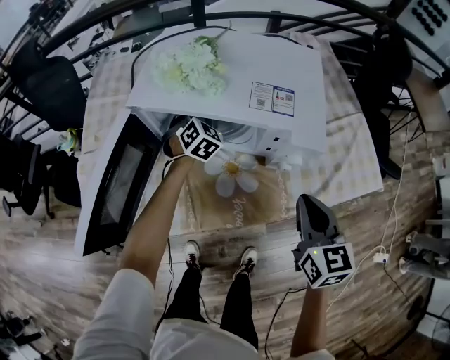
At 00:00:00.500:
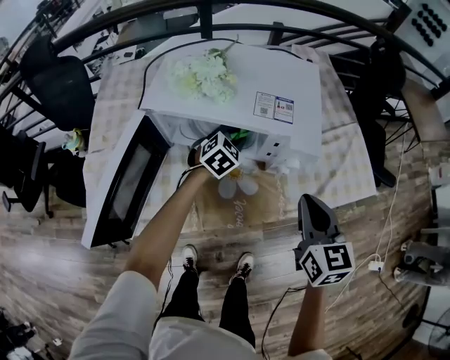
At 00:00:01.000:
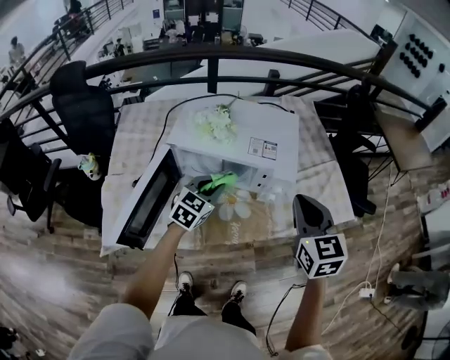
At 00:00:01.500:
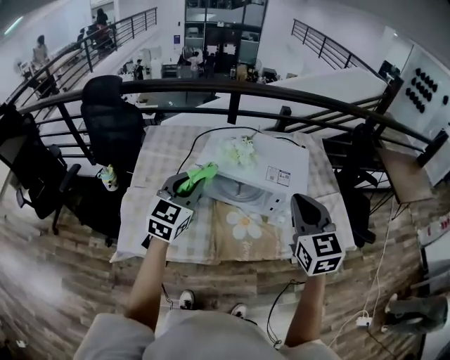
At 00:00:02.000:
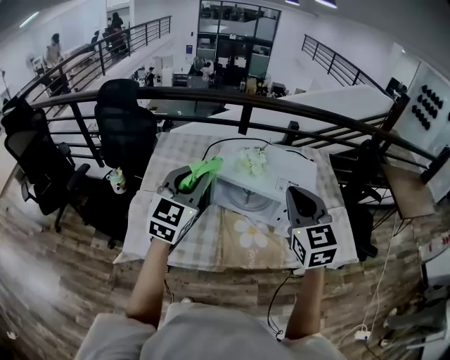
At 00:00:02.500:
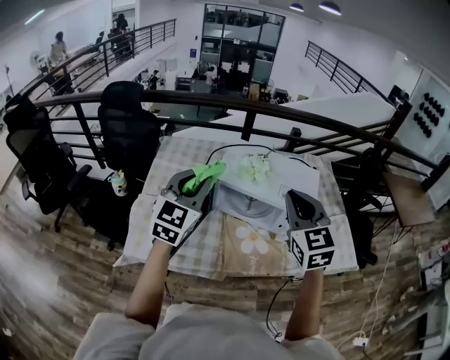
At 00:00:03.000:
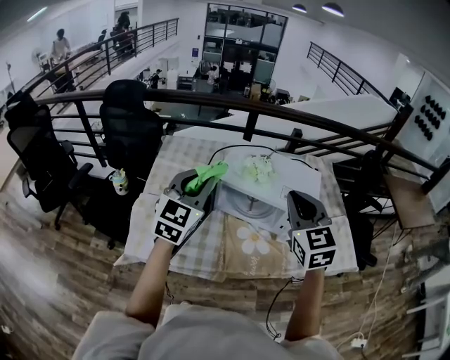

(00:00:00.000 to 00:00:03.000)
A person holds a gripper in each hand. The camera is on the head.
00:00:00.000 - 00:00:01.500: The right gripper goes roughly 25 cm upward, and swivels approximately 20 degrees, while the left gripper moves upward and backward, roughly 40 cm, and swivels some 40 degrees.
00:00:01.500 - 00:00:03.000: The left gripper is displaced upward by approximately 5 cm; the right gripper shifts approximately 10 cm to the left.

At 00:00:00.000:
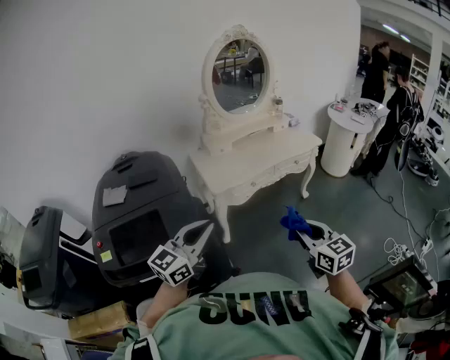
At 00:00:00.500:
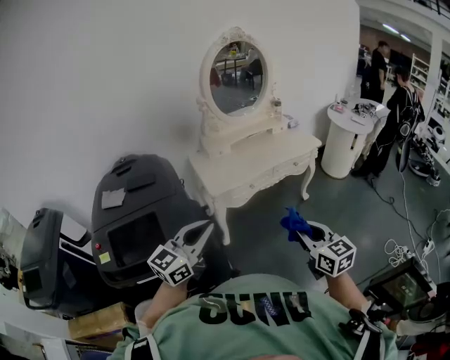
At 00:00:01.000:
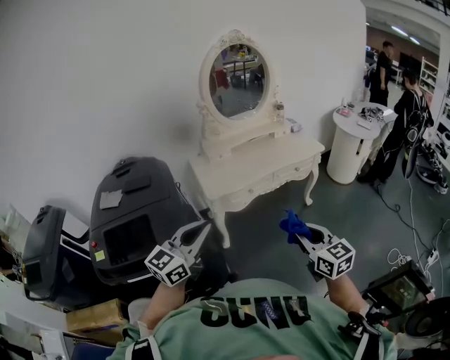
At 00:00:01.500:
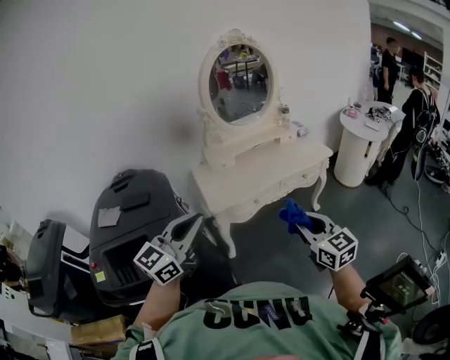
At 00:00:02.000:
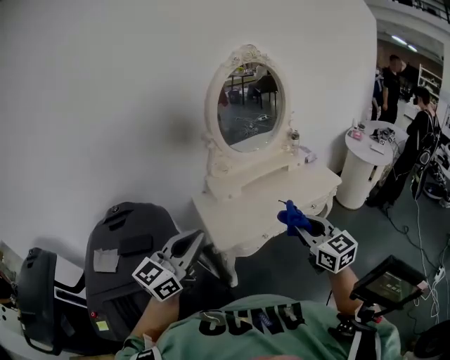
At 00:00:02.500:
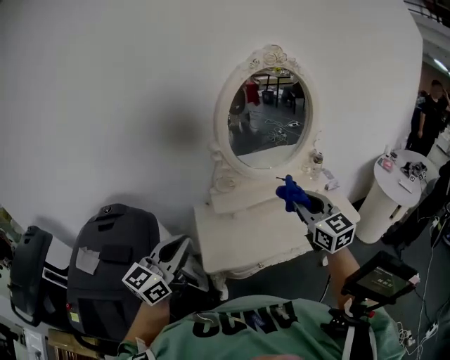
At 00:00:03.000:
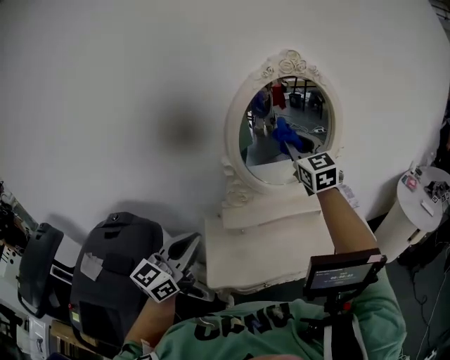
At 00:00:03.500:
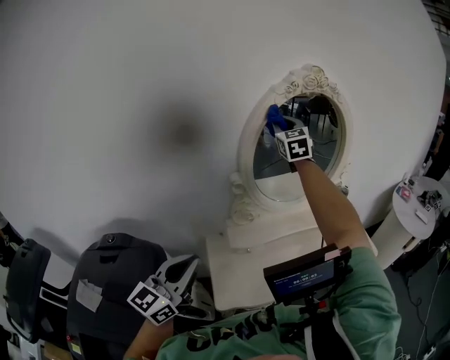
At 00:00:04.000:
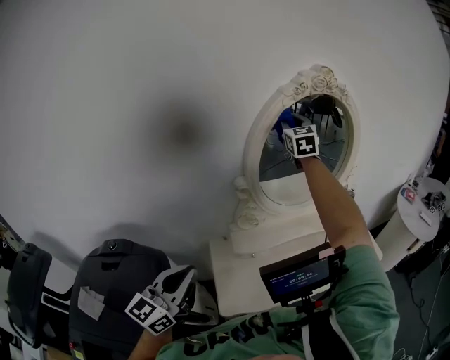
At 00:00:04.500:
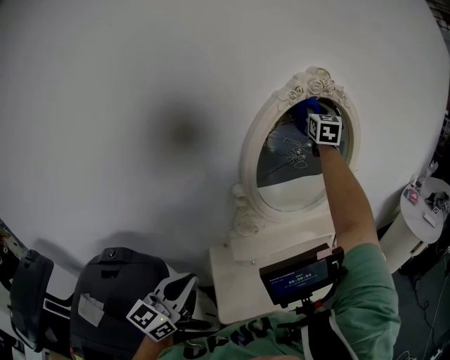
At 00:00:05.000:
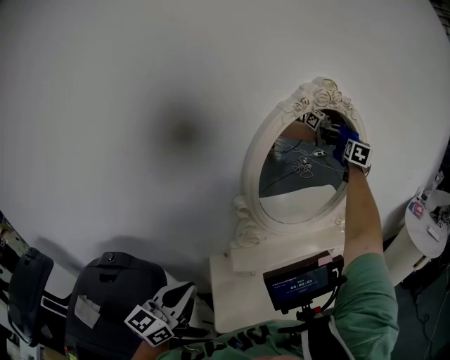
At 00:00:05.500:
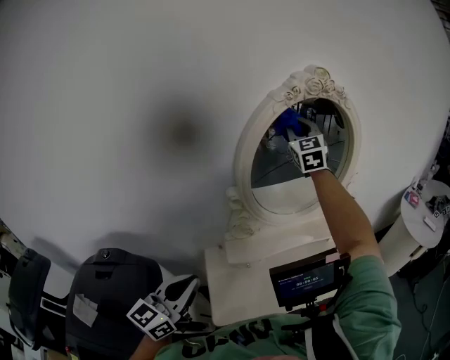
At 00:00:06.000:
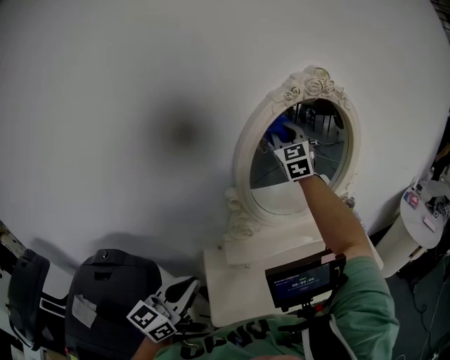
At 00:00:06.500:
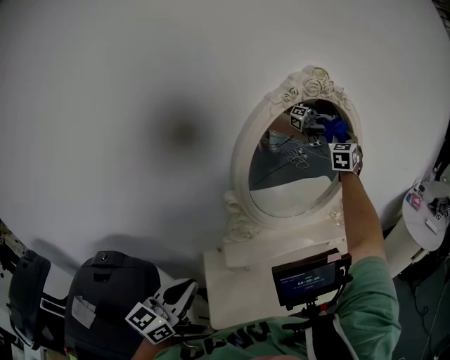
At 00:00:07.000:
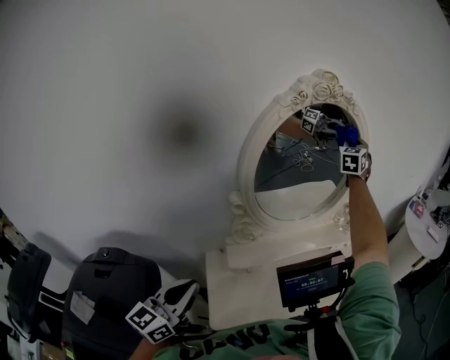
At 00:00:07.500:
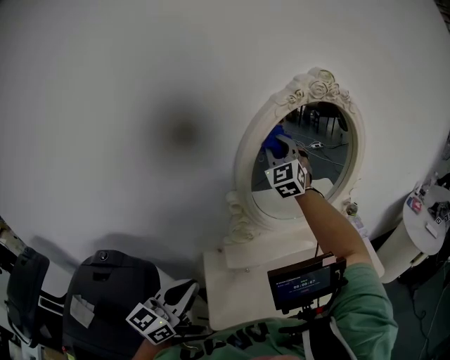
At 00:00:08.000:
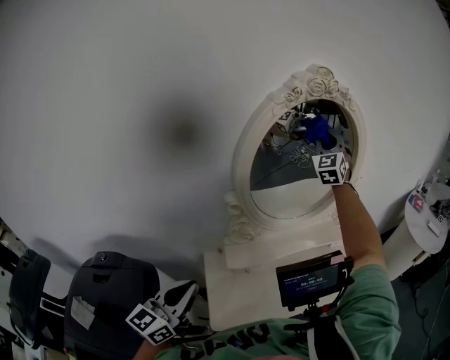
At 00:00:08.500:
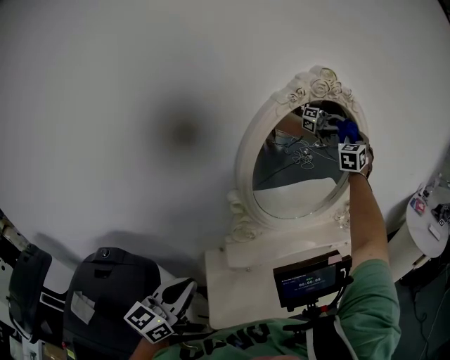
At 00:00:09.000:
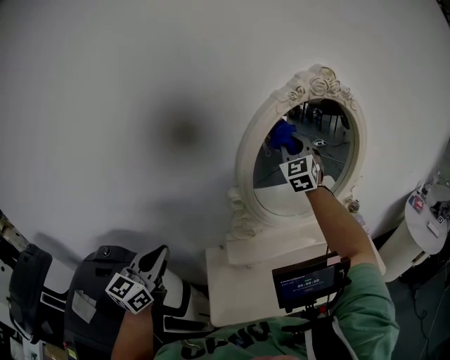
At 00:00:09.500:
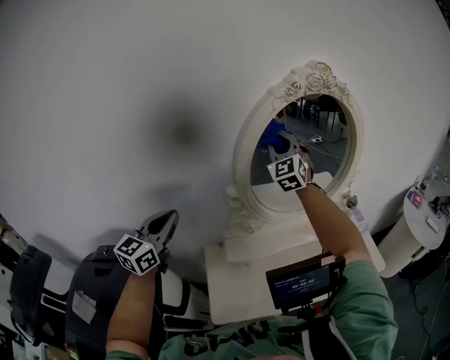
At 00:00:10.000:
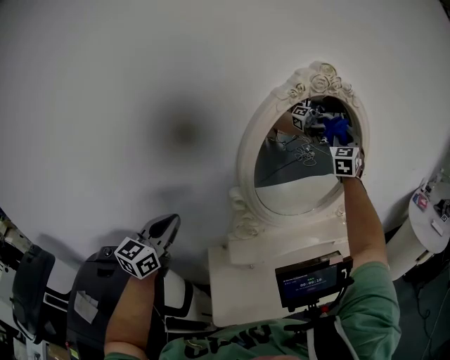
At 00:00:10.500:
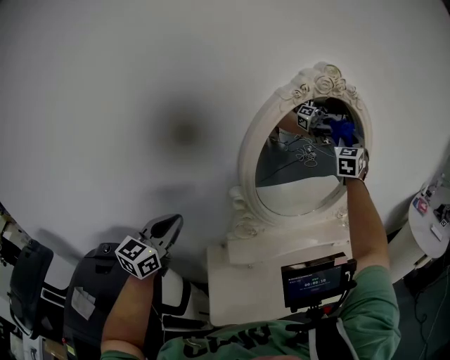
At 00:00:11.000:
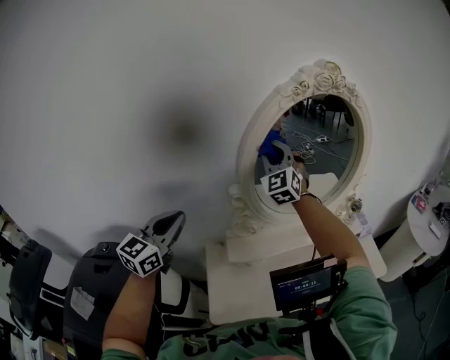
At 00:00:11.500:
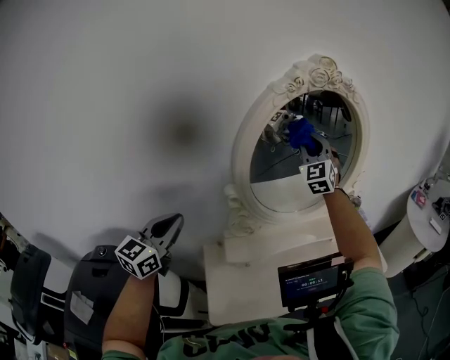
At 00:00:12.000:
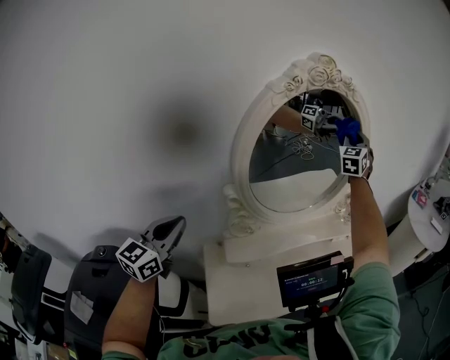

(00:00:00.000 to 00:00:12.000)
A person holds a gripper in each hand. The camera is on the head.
00:00:00.000 - 00:00:02.000: The two grippers go some 30 cm forward.
00:00:02.000 - 00:00:04.000: The right gripper goes roughly 70 cm forward, and turns by approximately 20 degrees. The left gripper travels forward by roughly 25 cm, and changes its angle by some 20 degrees.
00:00:04.000 - 00:00:06.000: The left gripper ends up about 5 cm from where it was; the right gripper travels to the right and back again, some 30 cm each way.
00:00:06.000 - 00:00:08.000: The right gripper swings left and right, some 30 cm each way, with 2 reversals, and turns by approximately 20 degrees.
00:00:08.000 - 00:00:10.000: The right gripper goes left and right, roughly 30 cm each way, reversing 2 times. Meanwhile the left gripper shifts about 15 cm forward, to the left and upward.
00:00:10.000 - 00:00:12.000: The right gripper moves roughly 25 cm to the left and comes back.

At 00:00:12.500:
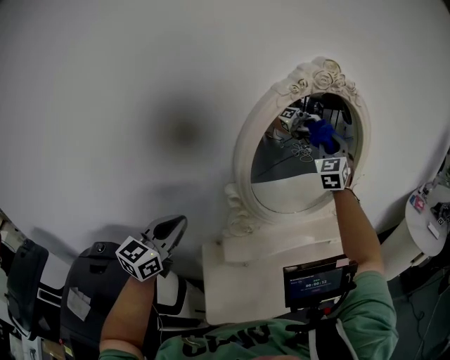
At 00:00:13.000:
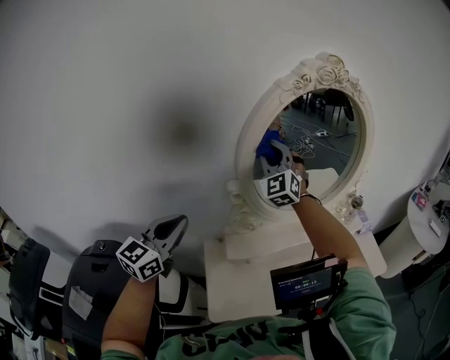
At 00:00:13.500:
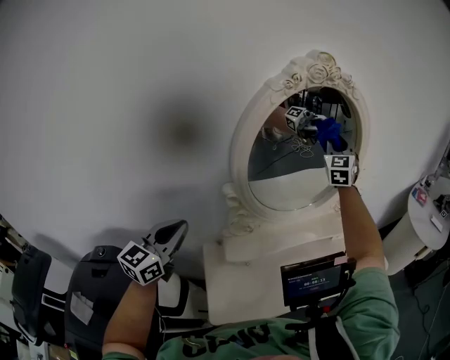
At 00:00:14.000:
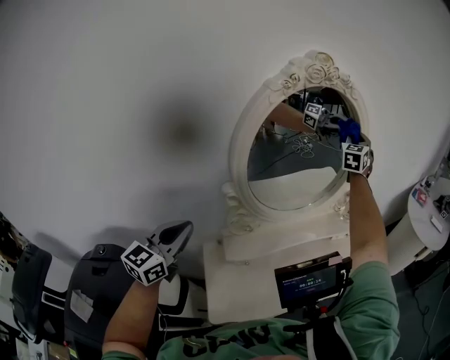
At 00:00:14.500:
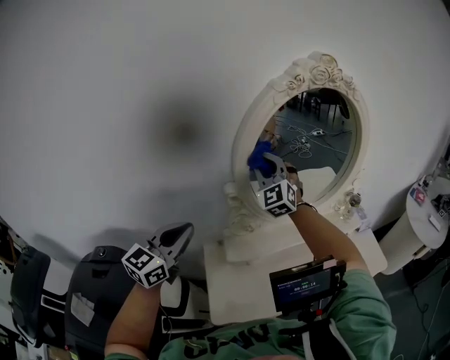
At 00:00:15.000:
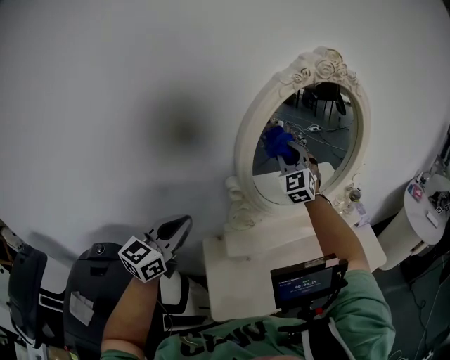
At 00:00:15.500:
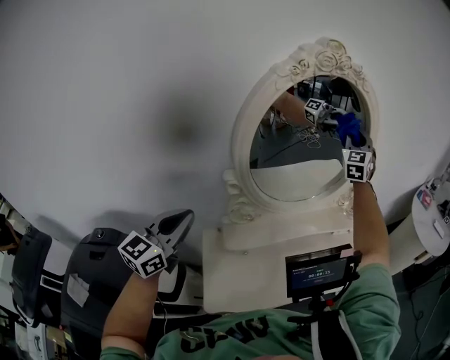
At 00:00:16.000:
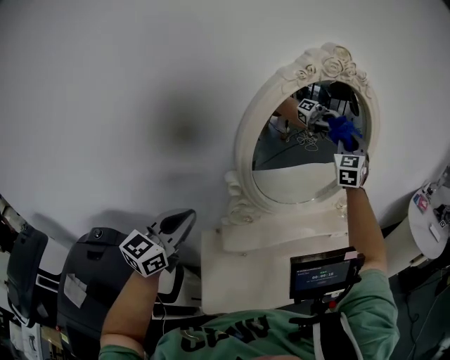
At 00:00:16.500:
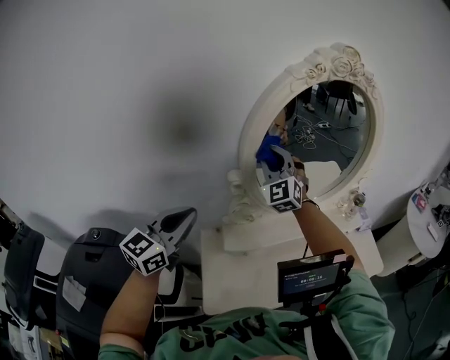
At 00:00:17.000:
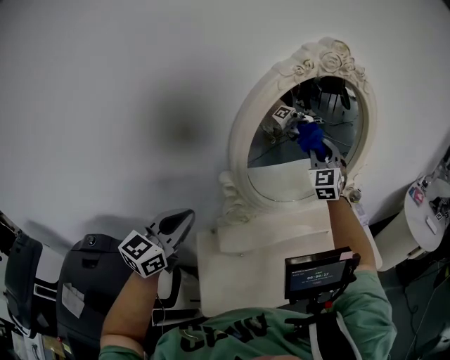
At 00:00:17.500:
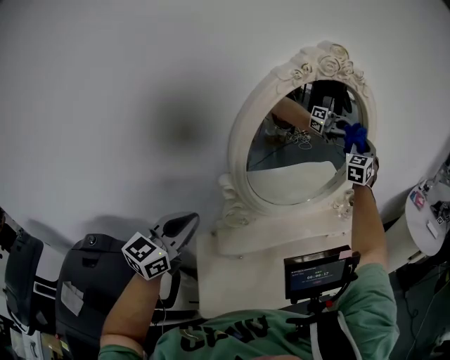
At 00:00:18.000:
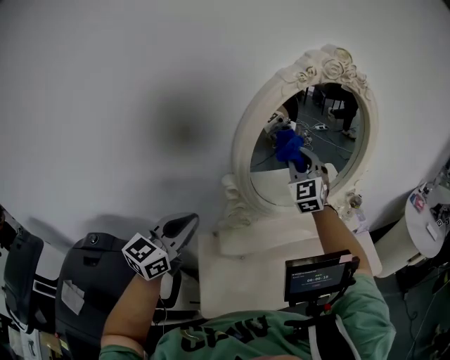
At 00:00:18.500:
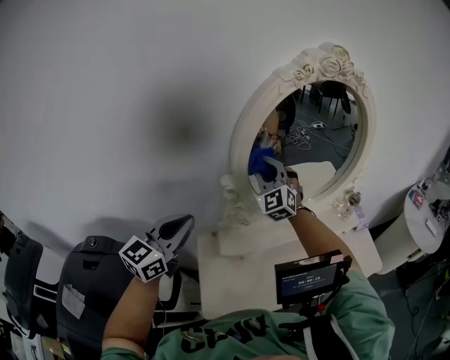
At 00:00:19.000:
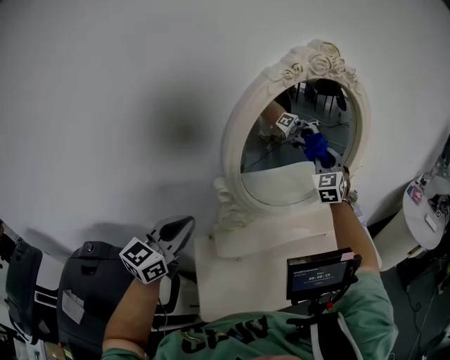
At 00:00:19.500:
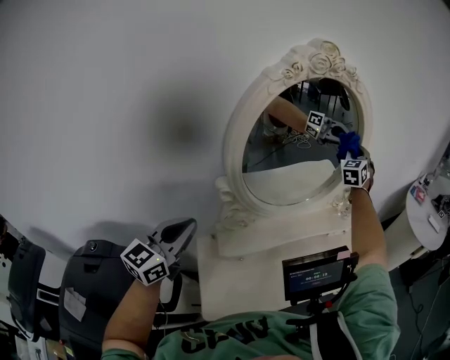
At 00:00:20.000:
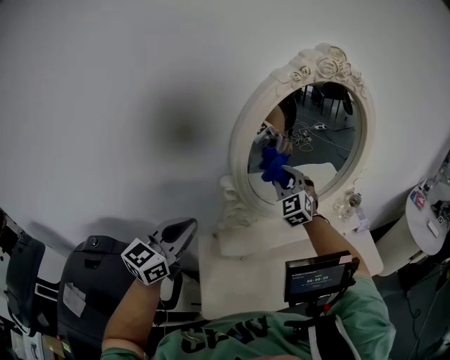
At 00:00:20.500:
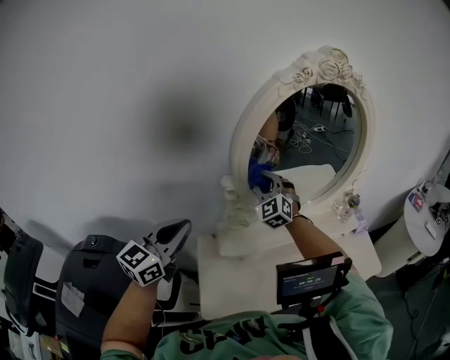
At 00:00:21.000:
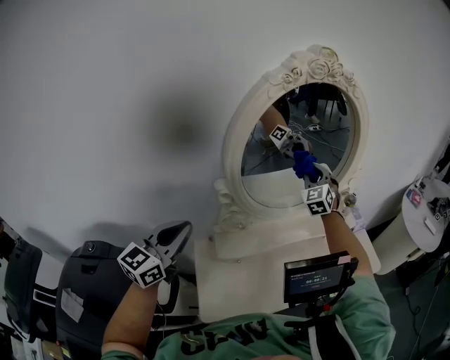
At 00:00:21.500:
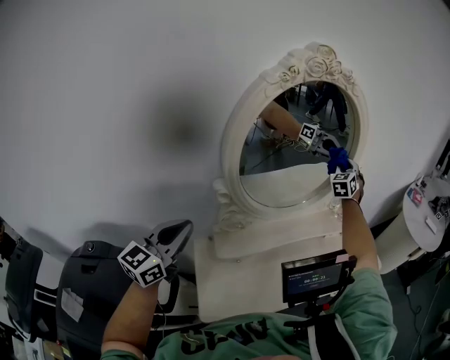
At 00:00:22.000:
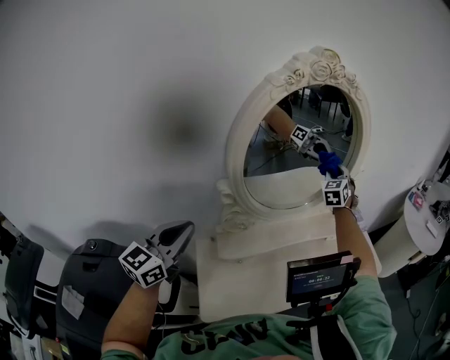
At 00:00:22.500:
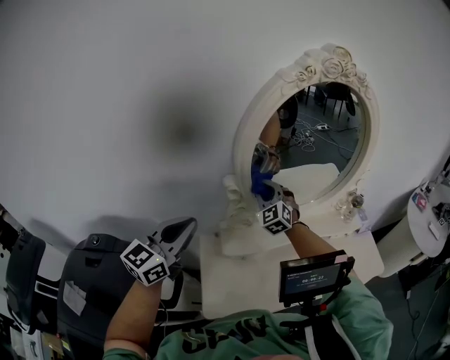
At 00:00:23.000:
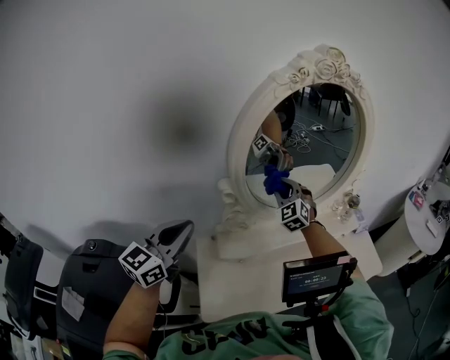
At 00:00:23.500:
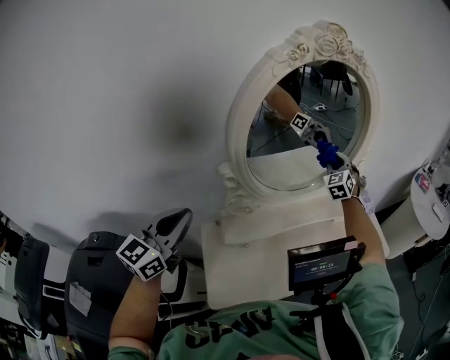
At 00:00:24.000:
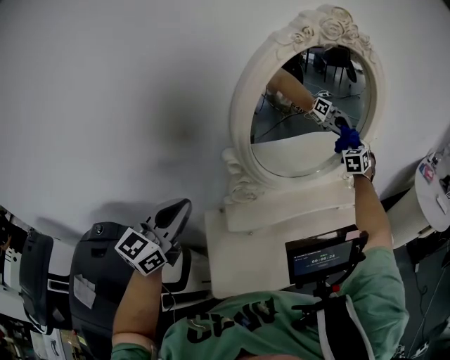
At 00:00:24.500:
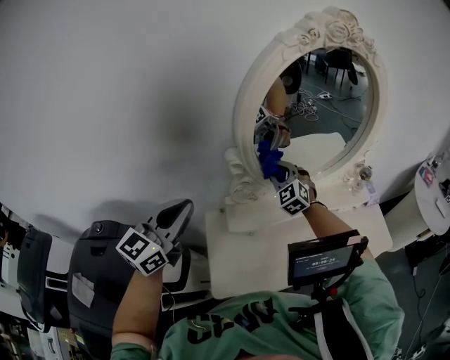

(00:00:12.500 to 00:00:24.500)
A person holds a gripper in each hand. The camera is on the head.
00:00:12.500 - 00:00:14.500: The right gripper moves left and right over some 35 cm, changing direction 2 times, and changes its angle by roughly 30 degrees.
00:00:14.500 - 00:00:16.500: The right gripper travels to the right and back again, about 30 cm each way.
00:00:16.500 - 00:00:18.500: The right gripper travels to the right and back again, some 35 cm each way.
00:00:18.500 - 00:00:20.500: The right gripper is displaced downward by some 5 cm, and goes to the right and returns, approximately 35 cm each way.
00:00:20.500 - 00:00:22.500: The right gripper moves about 35 cm to the right and comes back.
00:00:22.500 - 00:00:24.500: The right gripper goes to the right and returns, roughly 35 cm each way.
